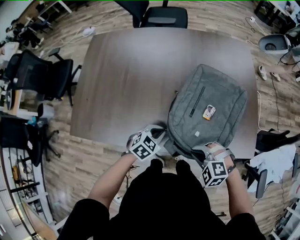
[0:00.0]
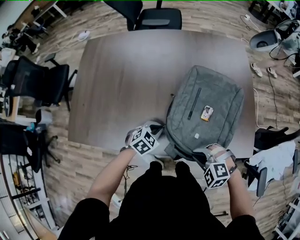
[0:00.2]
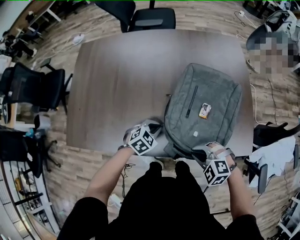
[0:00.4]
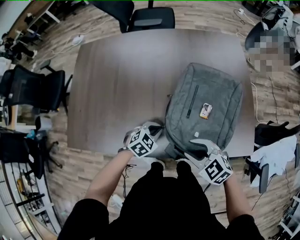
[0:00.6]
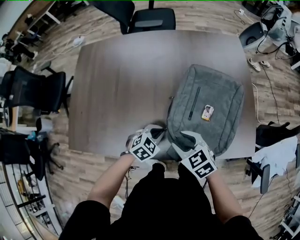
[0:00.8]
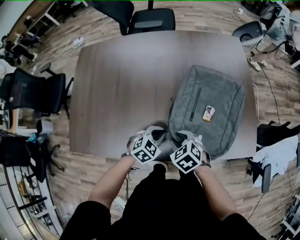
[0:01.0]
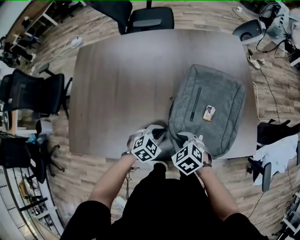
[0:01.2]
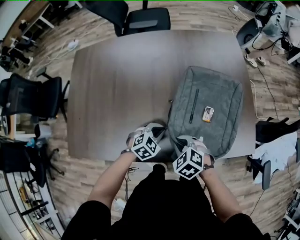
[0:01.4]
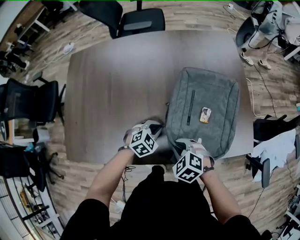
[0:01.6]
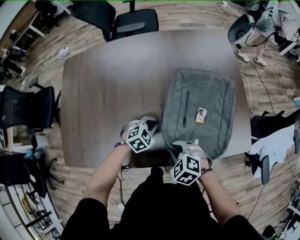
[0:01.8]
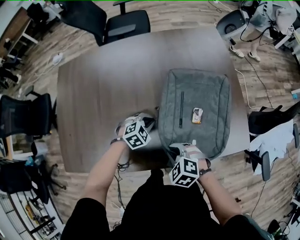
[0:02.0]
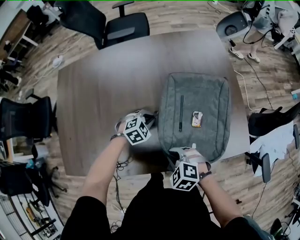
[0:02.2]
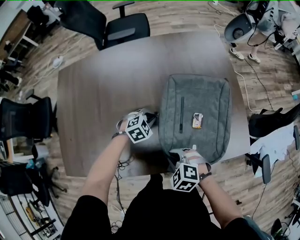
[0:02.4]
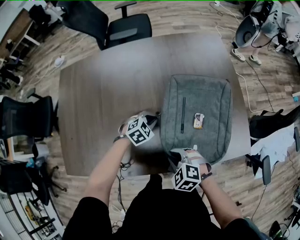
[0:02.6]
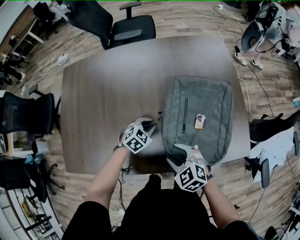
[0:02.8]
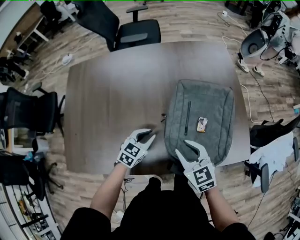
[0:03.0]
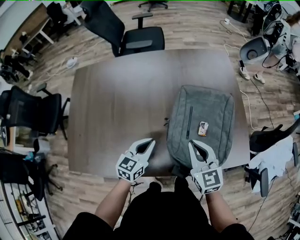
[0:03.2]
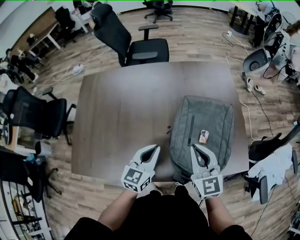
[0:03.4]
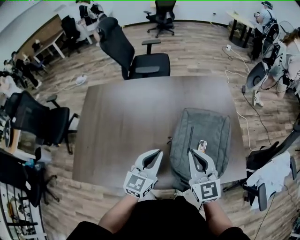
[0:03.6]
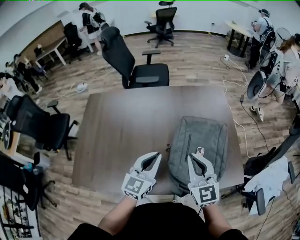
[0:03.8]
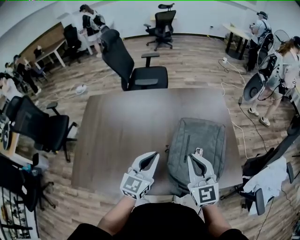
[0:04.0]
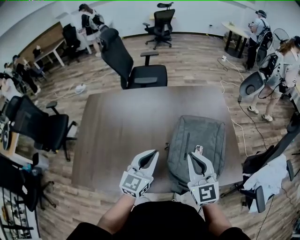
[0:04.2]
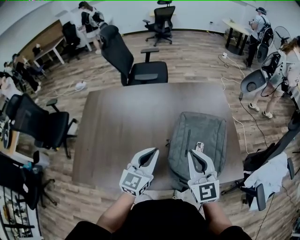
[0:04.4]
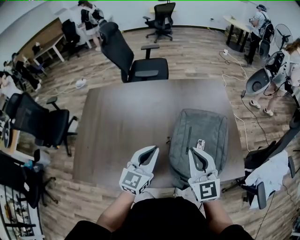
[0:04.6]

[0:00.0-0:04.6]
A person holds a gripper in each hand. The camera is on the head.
0:00.0 to 0:01.6: The left gripper goes approximately 5 cm forward, while the right gripper travels forward and to the left by about 10 cm, swivels some 30 degrees, and opens and closes again.
0:01.6 to 0:03.0: The right gripper travels upward and forward by approximately 10 cm, tilts its fingers some 30 degrees upward, and opens up. The left gripper moves about 10 cm forward and comes back, and rotates about 30 degrees.
0:03.0 to 0:04.6: The two grippers go some 20 cm upward. The left gripper tilts its fingers approximately 30 degrees upward, while the right gripper swivels about 30 degrees, and closes up.

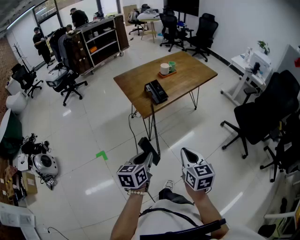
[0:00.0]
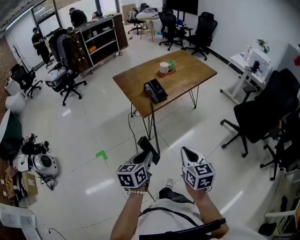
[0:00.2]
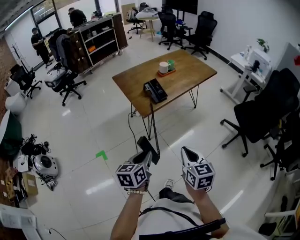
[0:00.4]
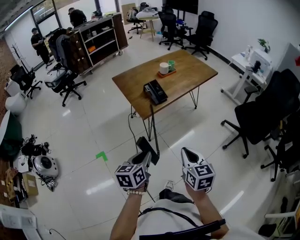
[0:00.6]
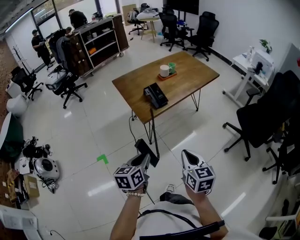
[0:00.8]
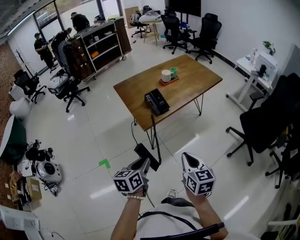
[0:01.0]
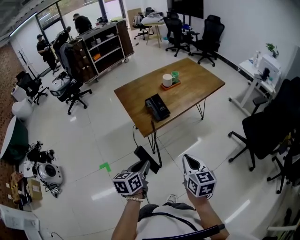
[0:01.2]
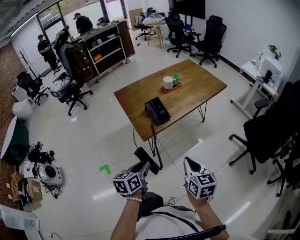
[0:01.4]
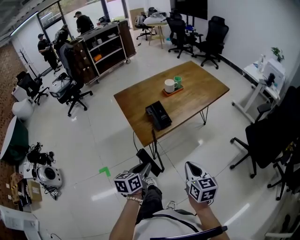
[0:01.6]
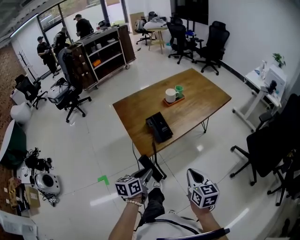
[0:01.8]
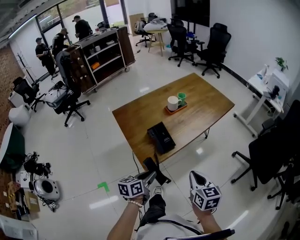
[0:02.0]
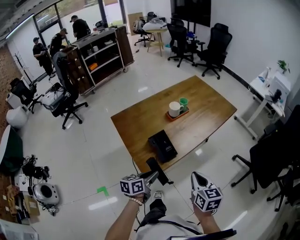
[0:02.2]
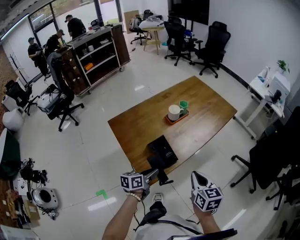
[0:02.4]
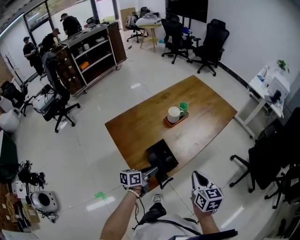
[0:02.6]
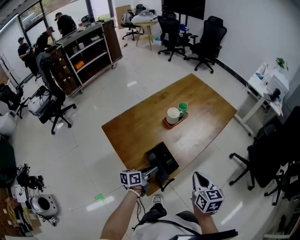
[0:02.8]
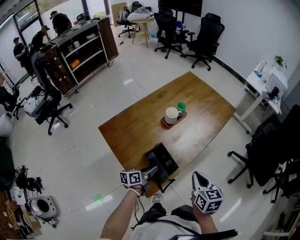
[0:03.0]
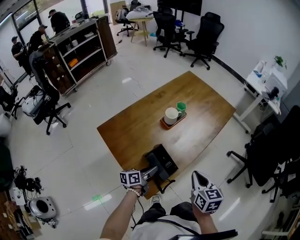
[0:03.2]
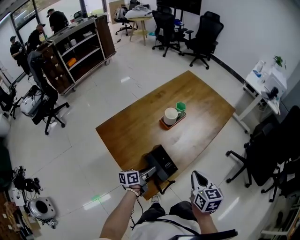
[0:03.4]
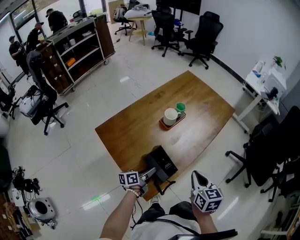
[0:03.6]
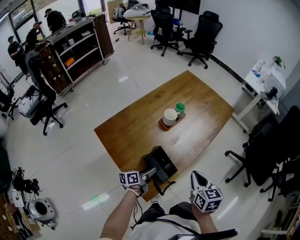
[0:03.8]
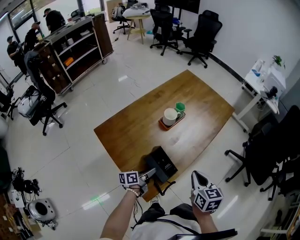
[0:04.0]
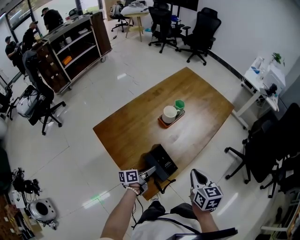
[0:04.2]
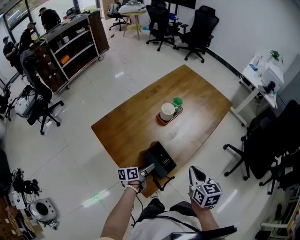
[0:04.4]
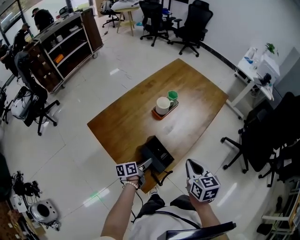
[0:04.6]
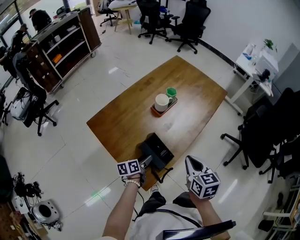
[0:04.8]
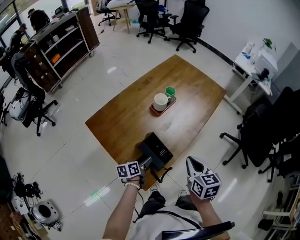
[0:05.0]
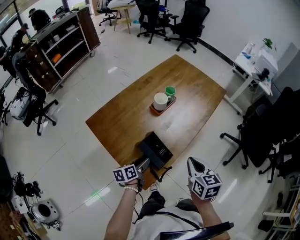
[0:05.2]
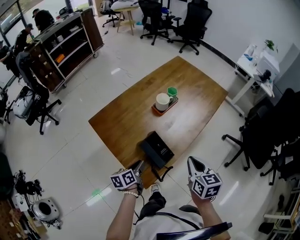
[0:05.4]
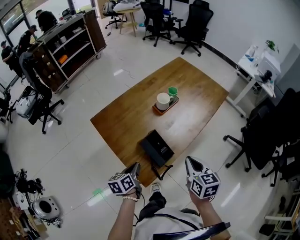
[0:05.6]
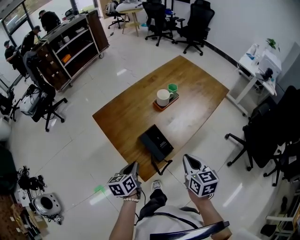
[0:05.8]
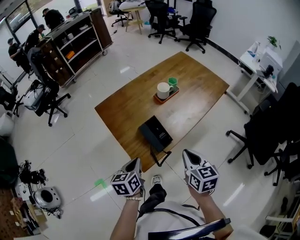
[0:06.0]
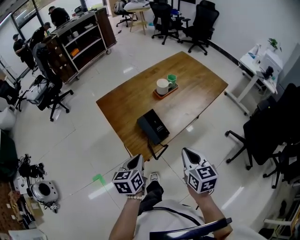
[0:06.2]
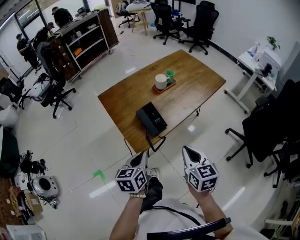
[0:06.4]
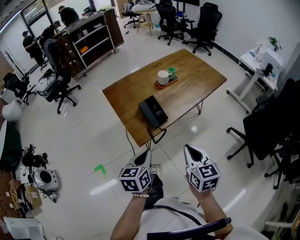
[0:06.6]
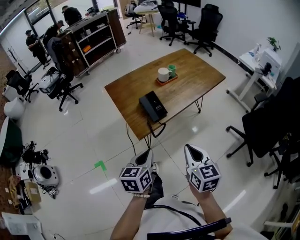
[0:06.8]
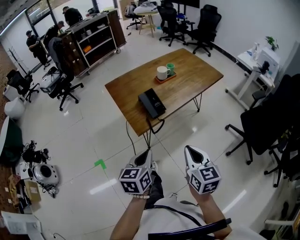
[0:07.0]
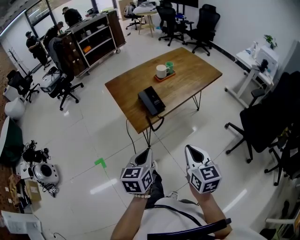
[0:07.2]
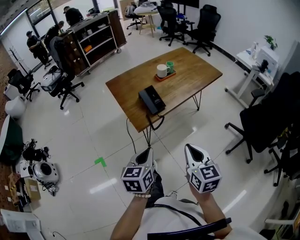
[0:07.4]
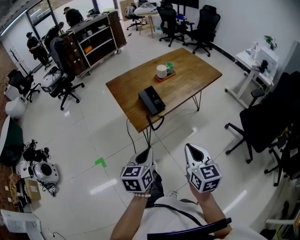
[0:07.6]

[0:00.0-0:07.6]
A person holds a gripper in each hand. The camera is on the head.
0:00.0 to 0:01.6: The two grippers go roughly 15 cm forward.
0:01.6 to 0:03.0: Both grippers travel together forward, some 30 cm. The left gripper turns by some 30 degrees.
0:03.0 to 0:04.6: The left gripper travels downward by approximately 5 cm, and opens.
0:04.6 to 0:06.0: The left gripper is displaced upward and backward by some 20 cm, swivels approximately 40 degrees, and closes. The right gripper is displaced backward by some 5 cm.
0:06.0 to 0:07.6: The left gripper heads backward and to the right, covering some 25 cm, while the right gripper is displaced backward by some 25 cm.

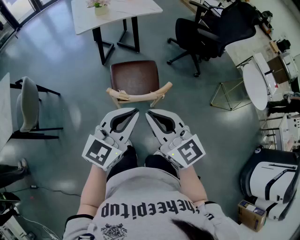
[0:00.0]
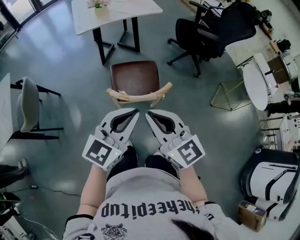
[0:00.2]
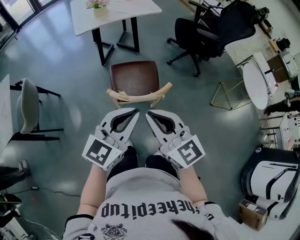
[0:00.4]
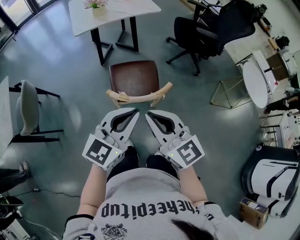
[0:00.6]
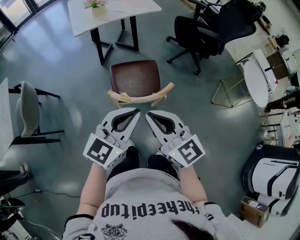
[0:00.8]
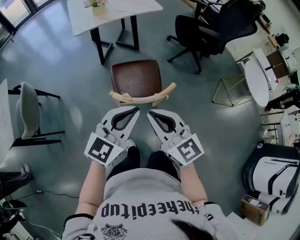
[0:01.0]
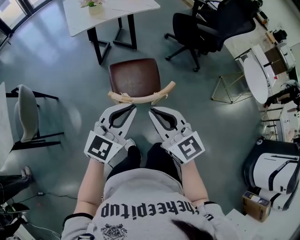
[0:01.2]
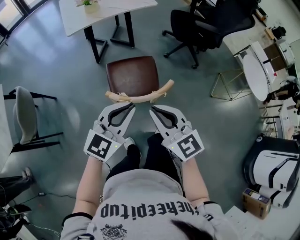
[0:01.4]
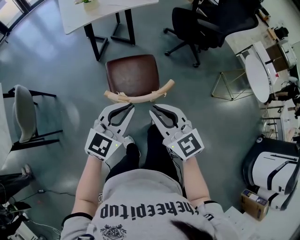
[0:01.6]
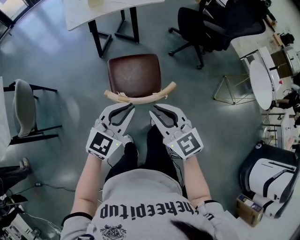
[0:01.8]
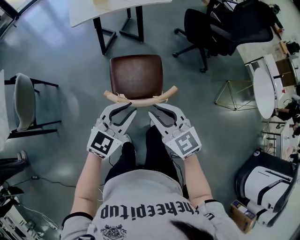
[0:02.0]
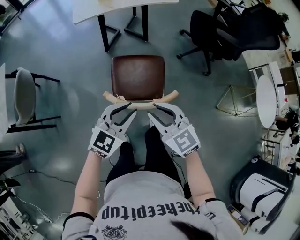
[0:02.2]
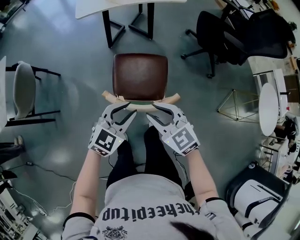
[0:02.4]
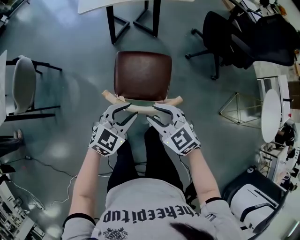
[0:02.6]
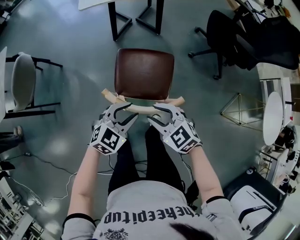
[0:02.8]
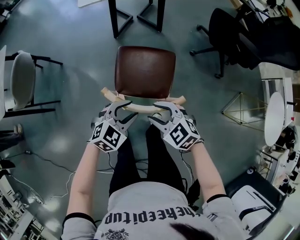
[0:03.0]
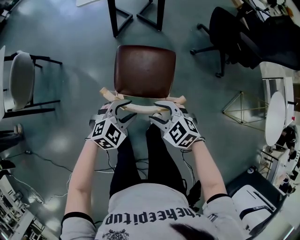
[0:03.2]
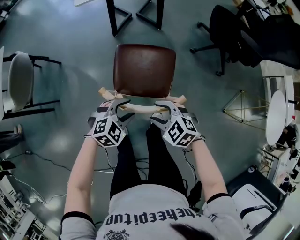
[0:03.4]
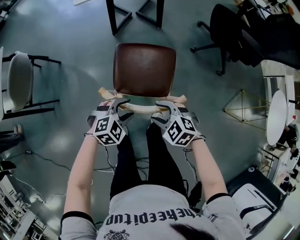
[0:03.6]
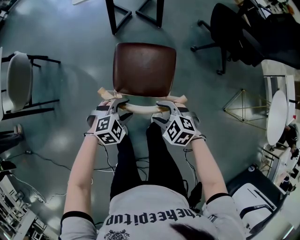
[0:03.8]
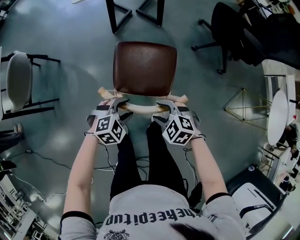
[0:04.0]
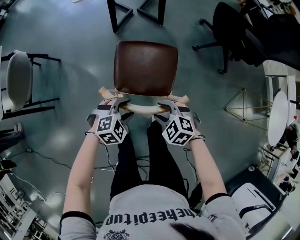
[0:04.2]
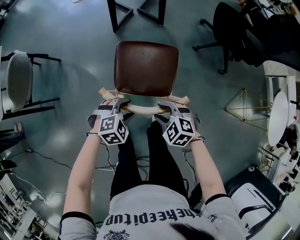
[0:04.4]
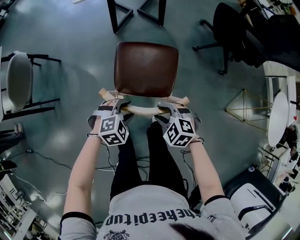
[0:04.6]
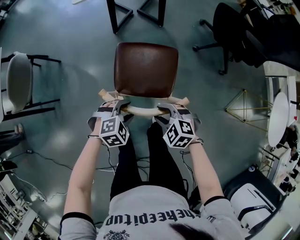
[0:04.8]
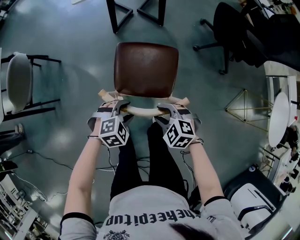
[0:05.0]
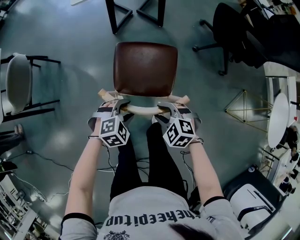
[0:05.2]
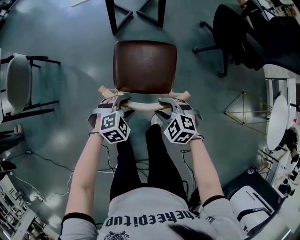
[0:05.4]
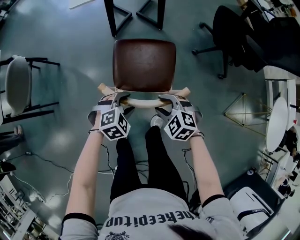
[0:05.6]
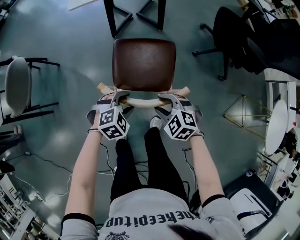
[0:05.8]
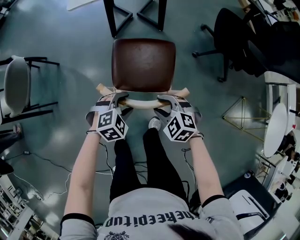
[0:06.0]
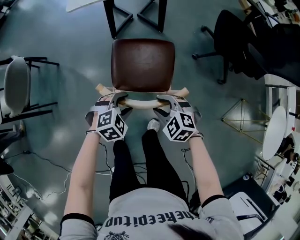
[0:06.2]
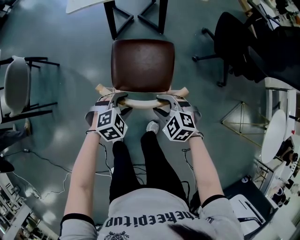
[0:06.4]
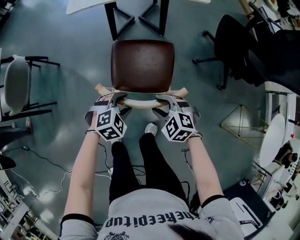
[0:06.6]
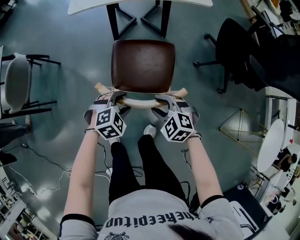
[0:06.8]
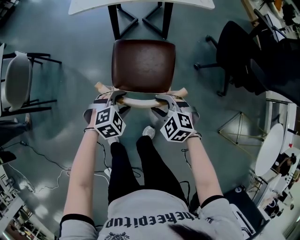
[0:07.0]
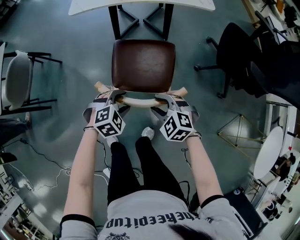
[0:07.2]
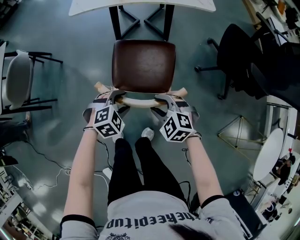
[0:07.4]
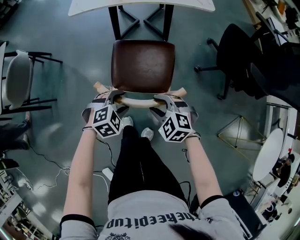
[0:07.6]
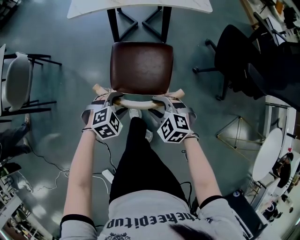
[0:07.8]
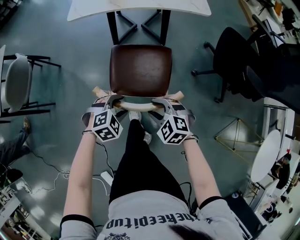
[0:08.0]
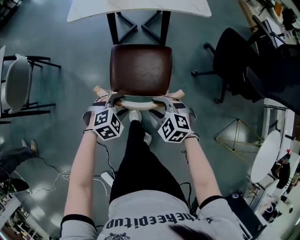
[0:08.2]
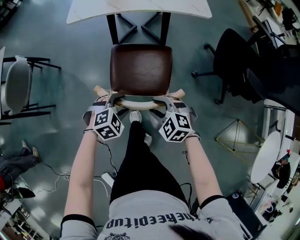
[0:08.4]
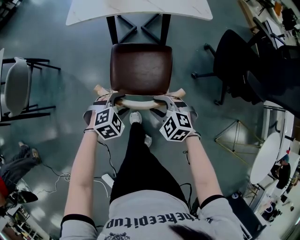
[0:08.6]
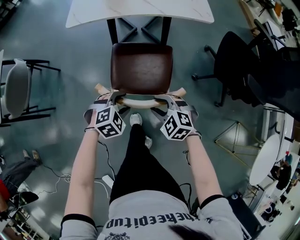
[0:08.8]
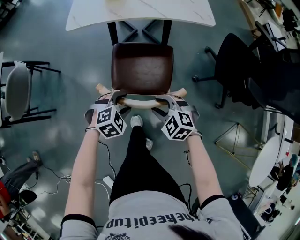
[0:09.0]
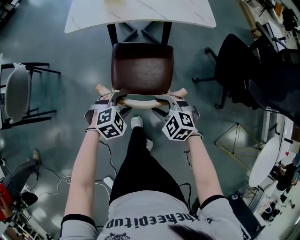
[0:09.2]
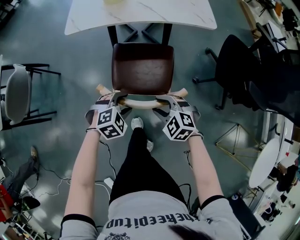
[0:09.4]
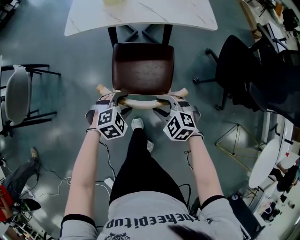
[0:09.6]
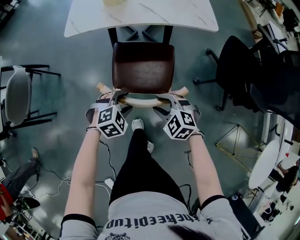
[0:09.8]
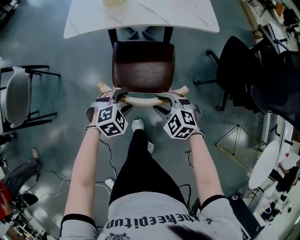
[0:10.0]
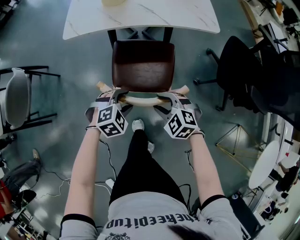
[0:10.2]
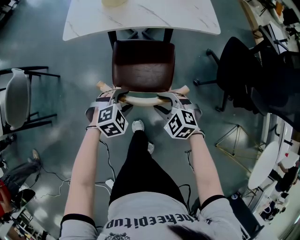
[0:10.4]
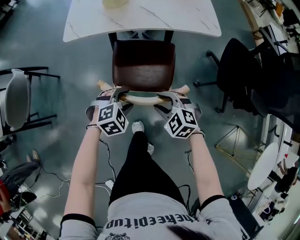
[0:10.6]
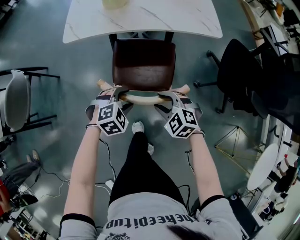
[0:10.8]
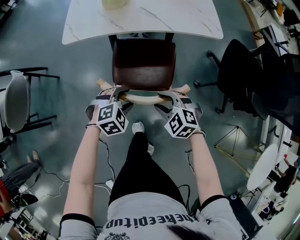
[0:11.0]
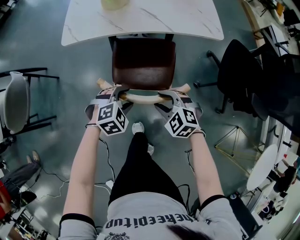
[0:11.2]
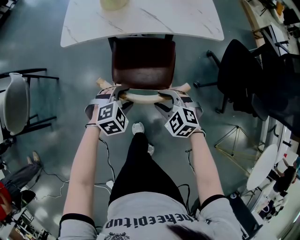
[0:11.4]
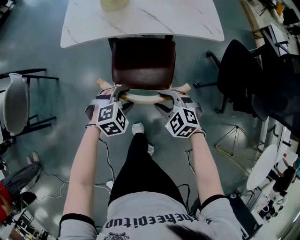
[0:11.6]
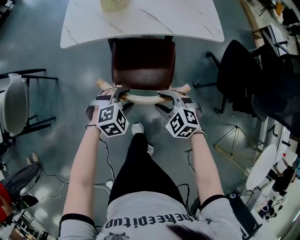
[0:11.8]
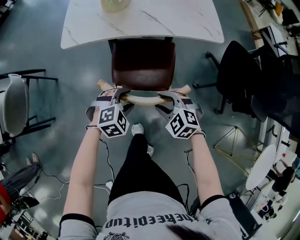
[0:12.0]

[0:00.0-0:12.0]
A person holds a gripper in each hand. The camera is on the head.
0:00.0 to 0:01.6: Both grippers move downward and forward, roughly 10 cm.
0:01.6 to 0:03.0: The left gripper is displaced downward by some 20 cm, changes its angle by approximately 30 degrees, and opens up. The right gripper travels downward and forward by about 20 cm, changes its angle by roughly 40 degrees, and opens.
0:03.0 to 0:04.4: The two grippers go approximately 10 cm downward. The left gripper rotates about 30 degrees.
0:04.4 to 0:06.0: The grippers both shift forward by about 10 cm.
0:06.0 to 0:07.6: The two grippers go some 10 cm forward.
0:07.6 to 0:09.0: The two grippers go approximately 10 cm forward.
0:09.0 to 0:10.4: Both grippers move forward, some 5 cm.
0:10.4 to 0:12.0: The grippers move only a little.
